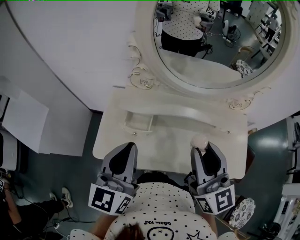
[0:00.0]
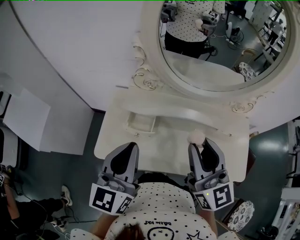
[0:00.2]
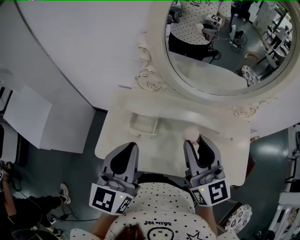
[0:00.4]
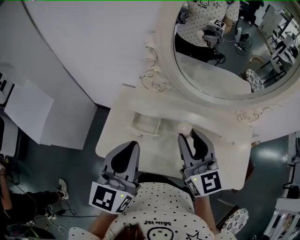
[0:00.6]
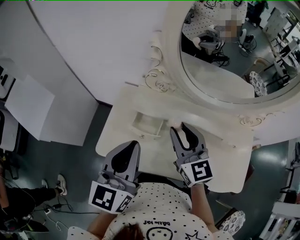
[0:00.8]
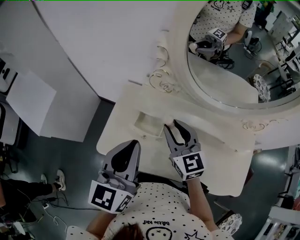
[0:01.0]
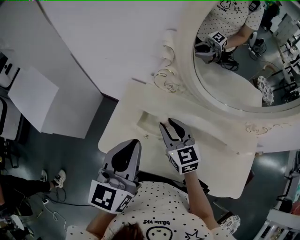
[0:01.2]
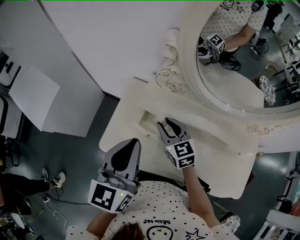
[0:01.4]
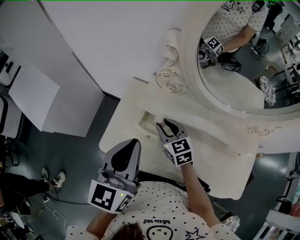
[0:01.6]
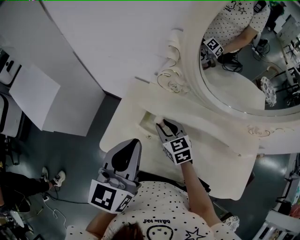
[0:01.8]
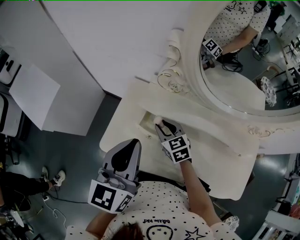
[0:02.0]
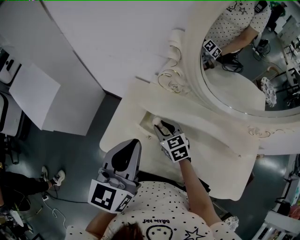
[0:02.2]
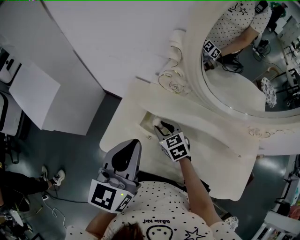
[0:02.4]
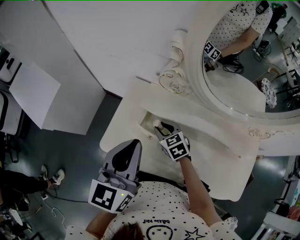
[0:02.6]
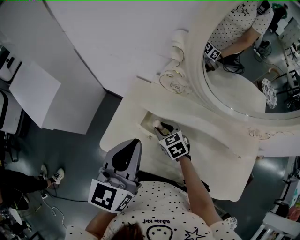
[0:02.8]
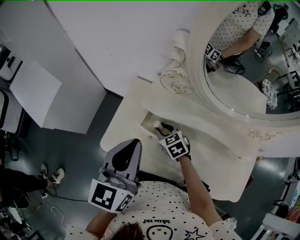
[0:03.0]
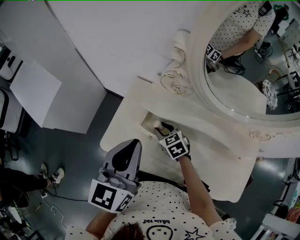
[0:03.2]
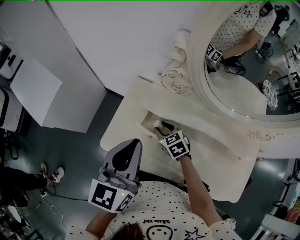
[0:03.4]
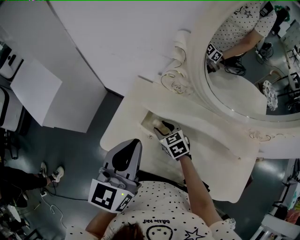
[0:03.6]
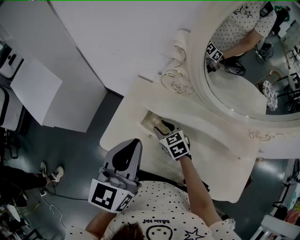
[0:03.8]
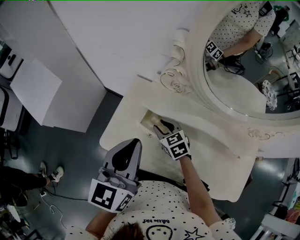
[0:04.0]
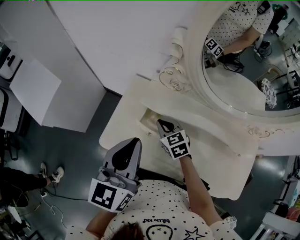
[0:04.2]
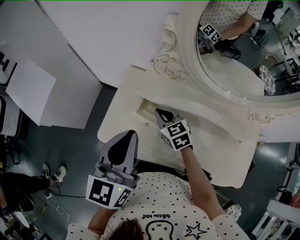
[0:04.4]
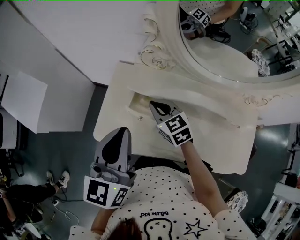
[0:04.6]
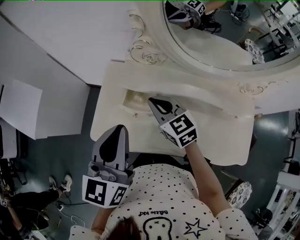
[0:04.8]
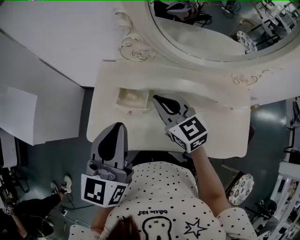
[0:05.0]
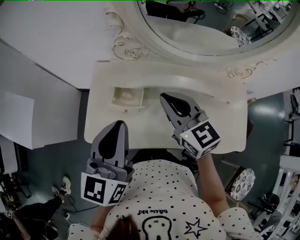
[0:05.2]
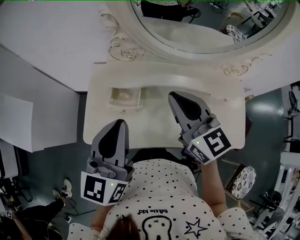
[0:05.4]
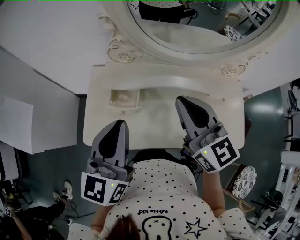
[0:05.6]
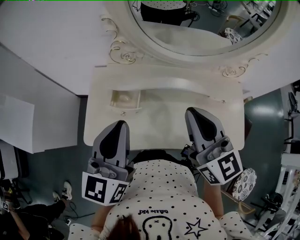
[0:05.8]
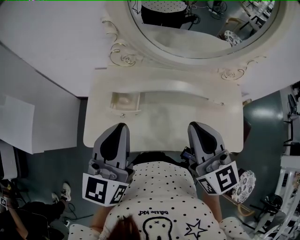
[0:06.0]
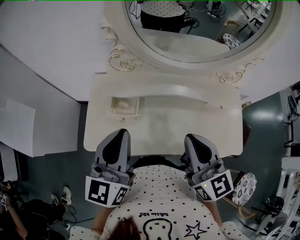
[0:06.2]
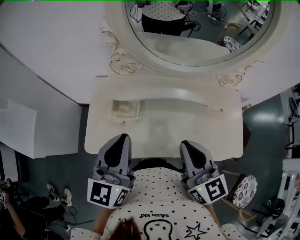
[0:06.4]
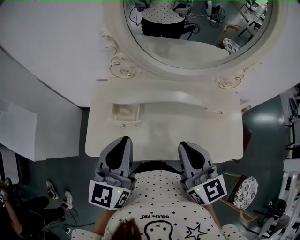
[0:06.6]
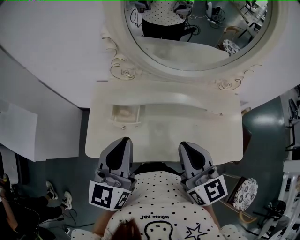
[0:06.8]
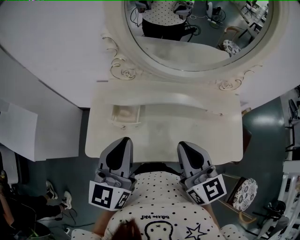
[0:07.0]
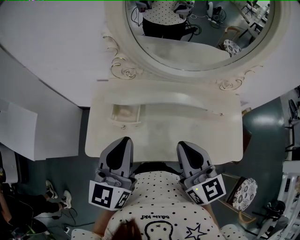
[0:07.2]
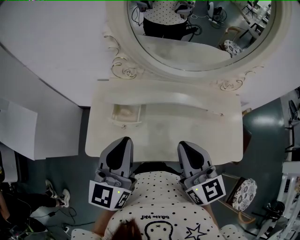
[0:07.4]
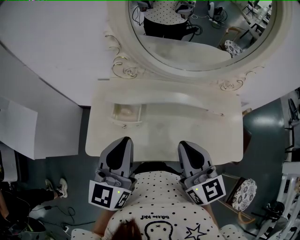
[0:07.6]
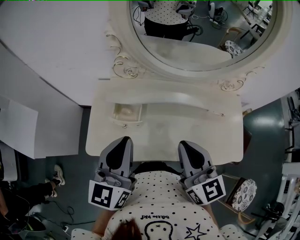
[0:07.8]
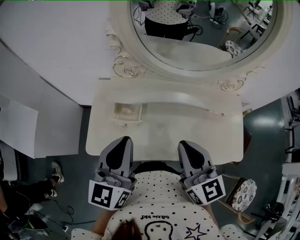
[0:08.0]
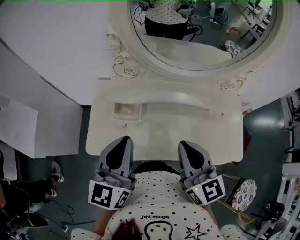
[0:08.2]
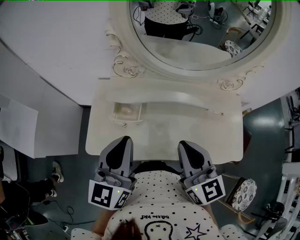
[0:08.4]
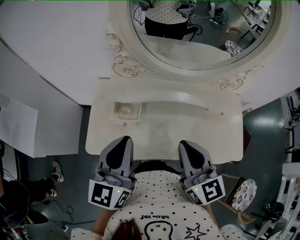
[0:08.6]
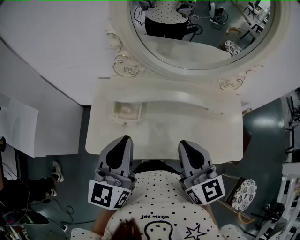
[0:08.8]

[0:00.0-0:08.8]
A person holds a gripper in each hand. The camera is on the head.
0:00.0 to 0:01.4: The right gripper travels downward, forward and to the left by about 30 cm, and changes its angle by approximately 40 degrees; the left gripper moves forward, roughly 5 cm.
0:01.4 to 0:03.0: The right gripper moves downward, about 10 cm, and changes its angle by approximately 20 degrees.
0:03.0 to 0:04.4: The right gripper moves upward, roughly 5 cm, and closes.
0:04.4 to 0:05.8: The right gripper goes about 30 cm upward, to the right and backward, and tilts its fingers about 30 degrees upward. The left gripper is displaced to the right by about 5 cm.
0:05.8 to 0:07.4: The right gripper changes place by roughly 5 cm.
0:07.4 to 0:08.8: The two grippers keep their place.

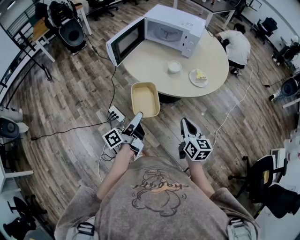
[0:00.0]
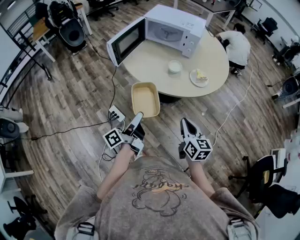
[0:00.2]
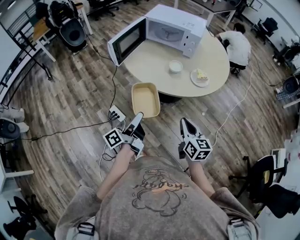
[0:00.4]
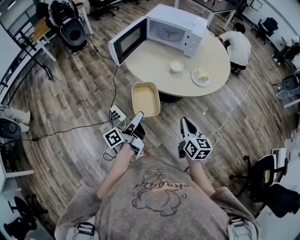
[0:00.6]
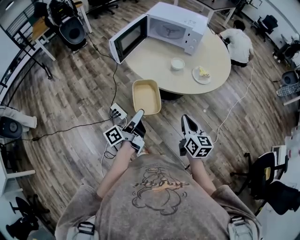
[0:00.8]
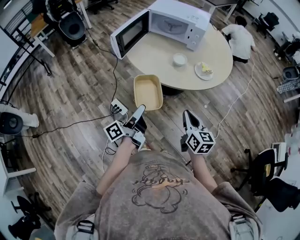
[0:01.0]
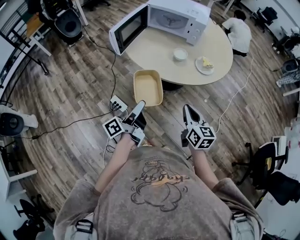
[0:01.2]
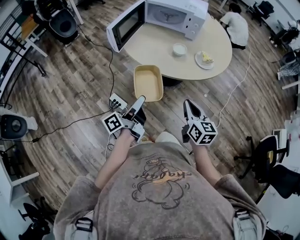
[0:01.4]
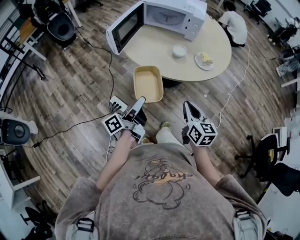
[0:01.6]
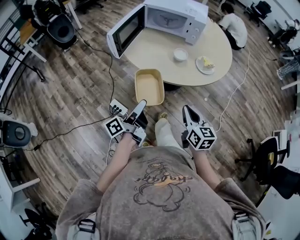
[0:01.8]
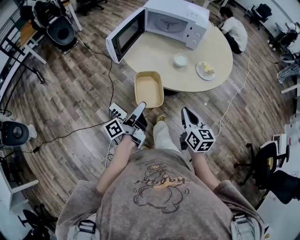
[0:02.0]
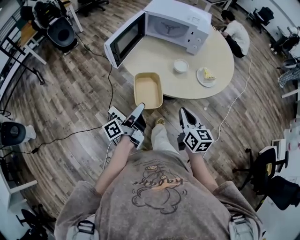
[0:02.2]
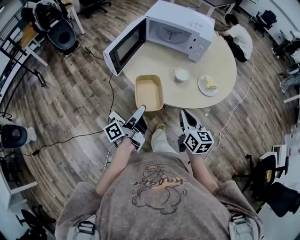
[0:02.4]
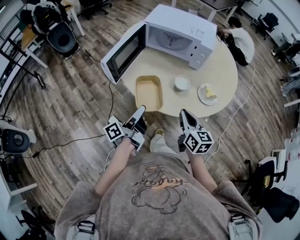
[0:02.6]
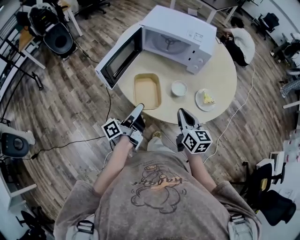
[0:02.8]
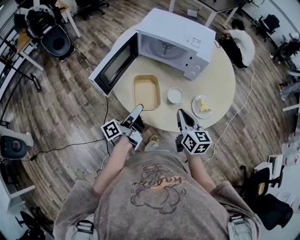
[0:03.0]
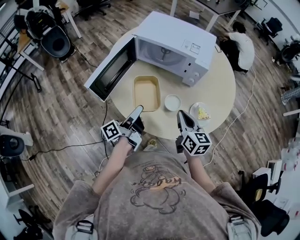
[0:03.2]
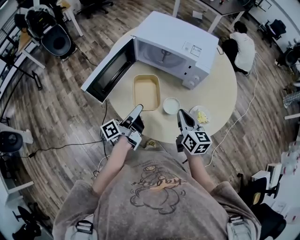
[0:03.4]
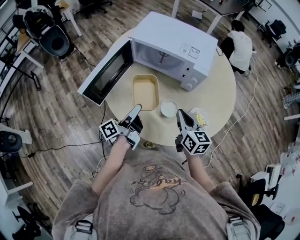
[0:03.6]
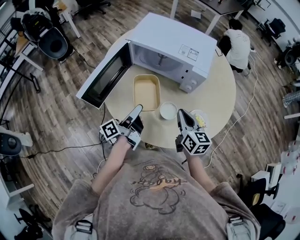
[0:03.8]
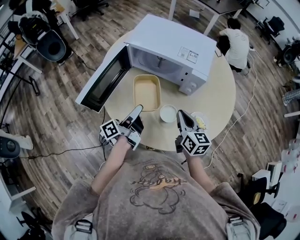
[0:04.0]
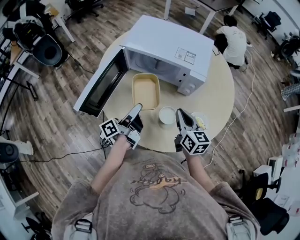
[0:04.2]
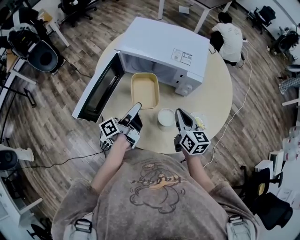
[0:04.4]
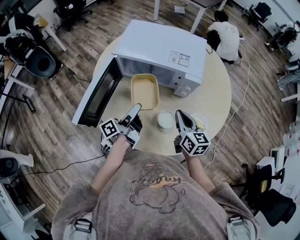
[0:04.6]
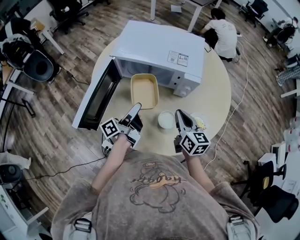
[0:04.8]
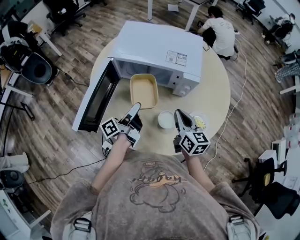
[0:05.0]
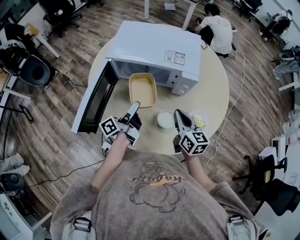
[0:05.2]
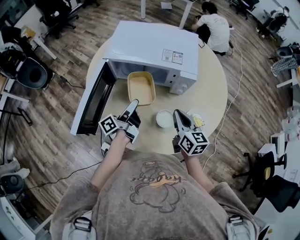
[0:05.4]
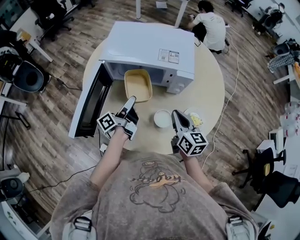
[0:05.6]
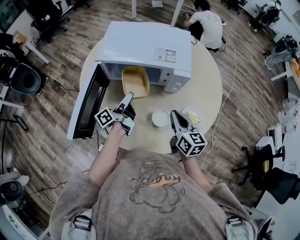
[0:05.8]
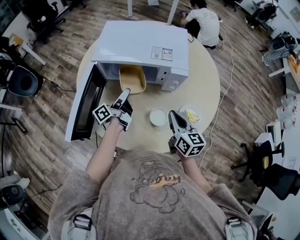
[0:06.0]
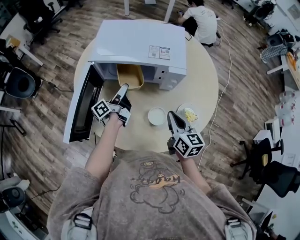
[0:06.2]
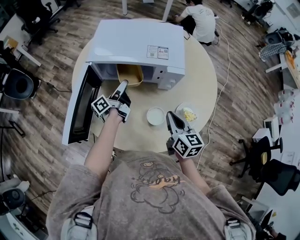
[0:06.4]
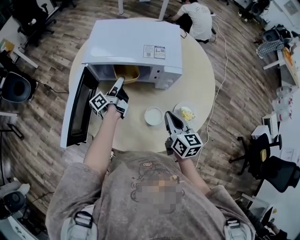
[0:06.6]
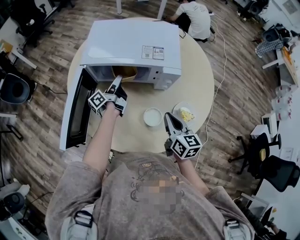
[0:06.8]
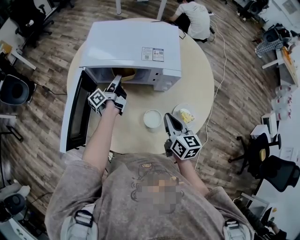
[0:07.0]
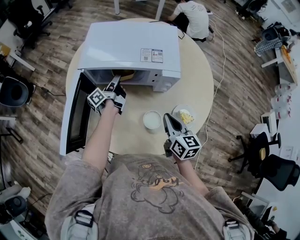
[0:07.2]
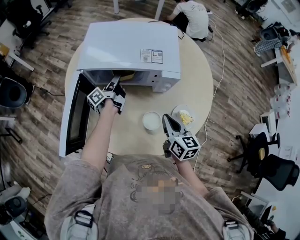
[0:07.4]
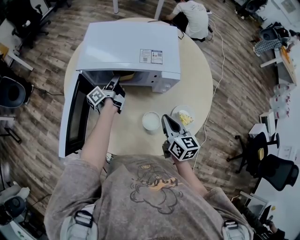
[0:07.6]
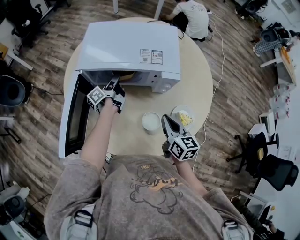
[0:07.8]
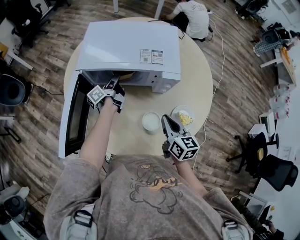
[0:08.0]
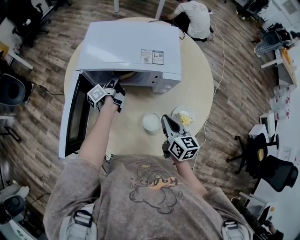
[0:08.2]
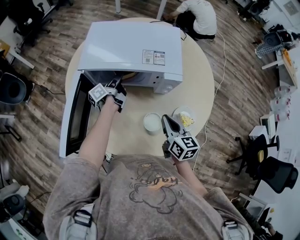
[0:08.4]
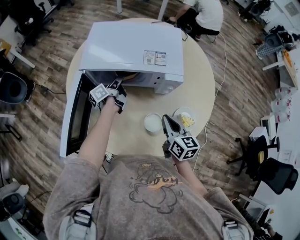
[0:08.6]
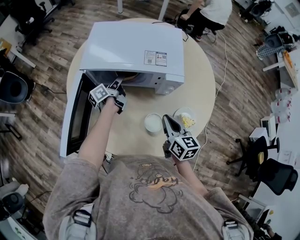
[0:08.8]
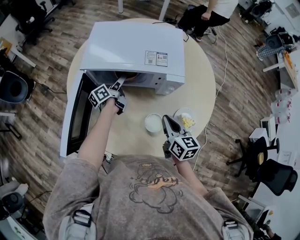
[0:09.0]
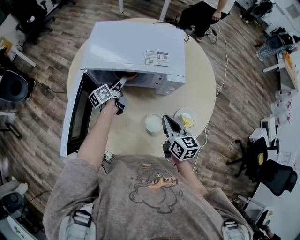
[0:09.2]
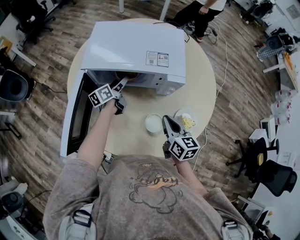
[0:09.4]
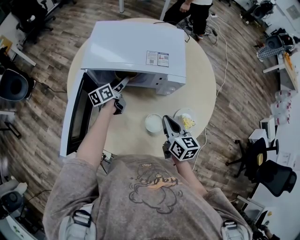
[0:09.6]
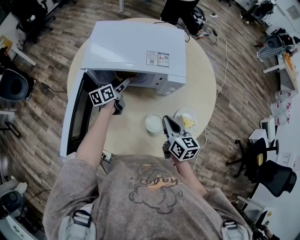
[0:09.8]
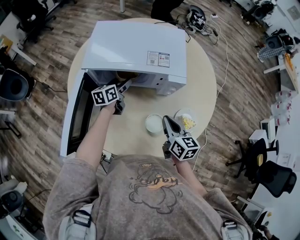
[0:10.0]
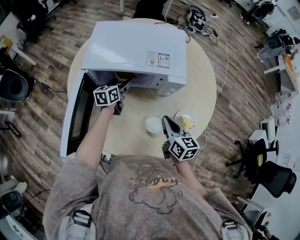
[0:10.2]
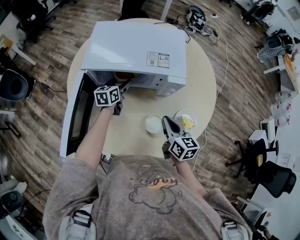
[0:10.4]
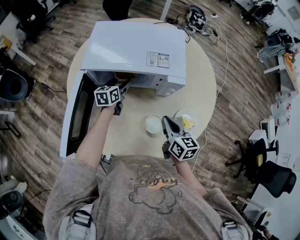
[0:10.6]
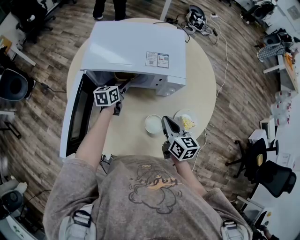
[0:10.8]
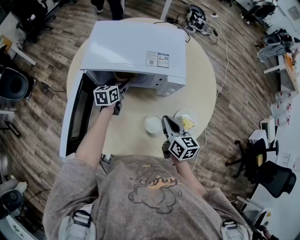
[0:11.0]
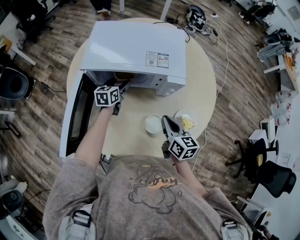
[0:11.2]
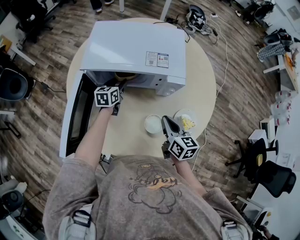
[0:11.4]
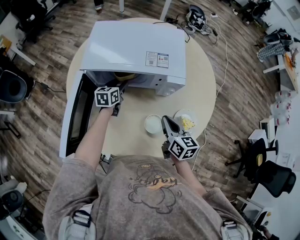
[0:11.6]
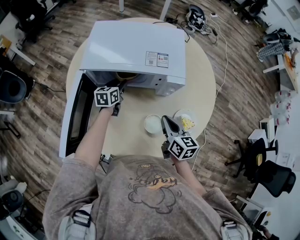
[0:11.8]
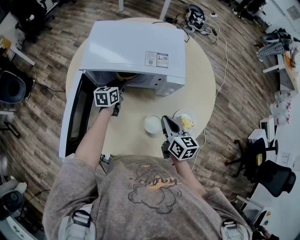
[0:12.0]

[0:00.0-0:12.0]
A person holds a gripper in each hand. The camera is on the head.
0:00.0 to 0:01.6: Both grippers move to the left, about 5 cm.
0:01.6 to 0:03.0: The two grippers go approximately 25 cm forward.
0:03.0 to 0:04.4: The two grippers go about 15 cm forward.
0:04.4 to 0:06.0: The left gripper goes approximately 10 cm forward.
0:06.0 to 0:07.6: The left gripper heads forward, covering about 10 cm.
0:07.6 to 0:09.0: The grippers make only small movements.
0:09.0 to 0:10.4: The left gripper rotates around the line of its fingers by some 40 degrees, clockwise from behind.
0:10.4 to 0:12.0: The left gripper closes.

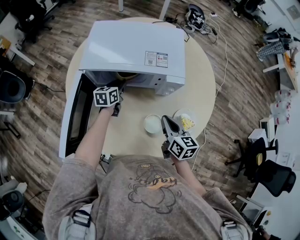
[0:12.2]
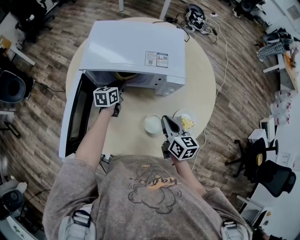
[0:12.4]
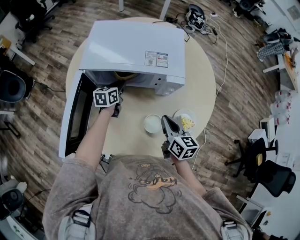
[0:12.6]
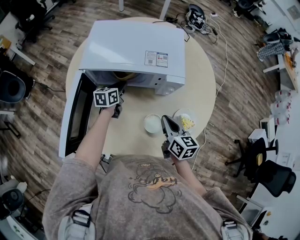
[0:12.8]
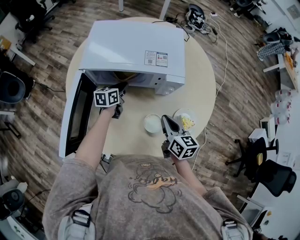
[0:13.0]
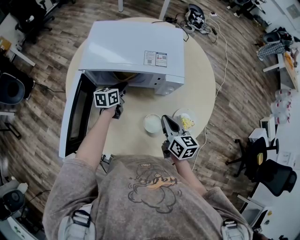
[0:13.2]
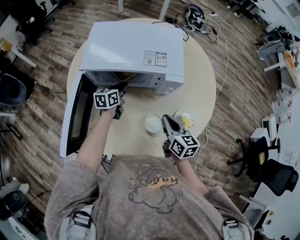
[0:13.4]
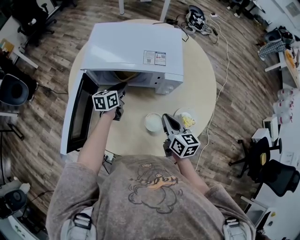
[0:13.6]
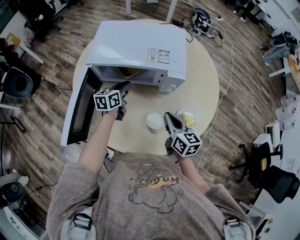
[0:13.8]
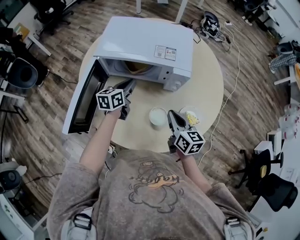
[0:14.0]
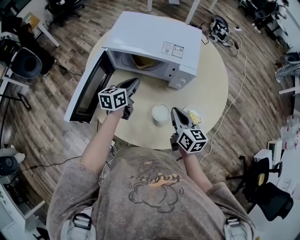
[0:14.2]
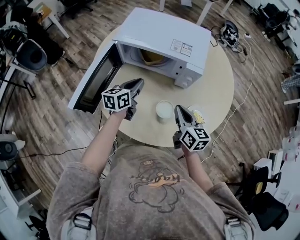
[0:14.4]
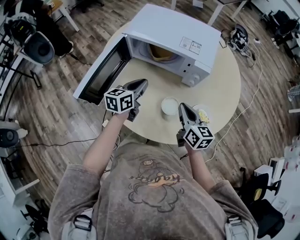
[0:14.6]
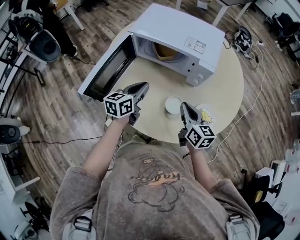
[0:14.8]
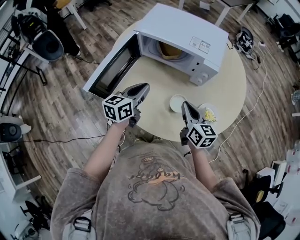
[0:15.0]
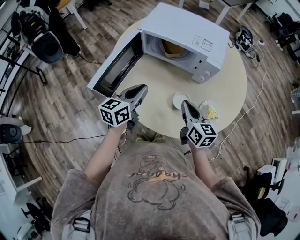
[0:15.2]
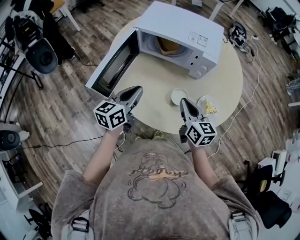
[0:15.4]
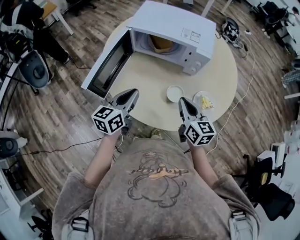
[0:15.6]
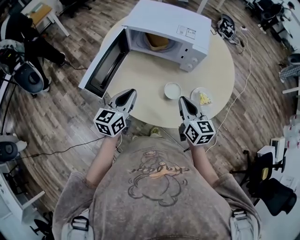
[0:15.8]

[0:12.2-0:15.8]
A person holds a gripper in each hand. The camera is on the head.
0:12.2 to 0:14.0: The left gripper shifts roughly 10 cm upward and backward.
0:14.0 to 0:15.8: The right gripper is displaced backward by some 10 cm; the left gripper heads backward, covering roughly 25 cm.
